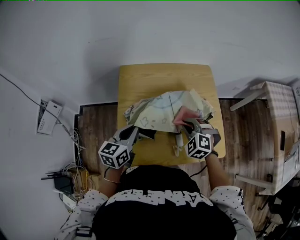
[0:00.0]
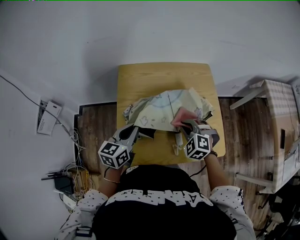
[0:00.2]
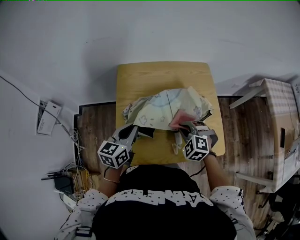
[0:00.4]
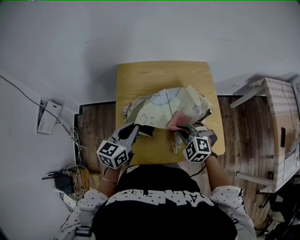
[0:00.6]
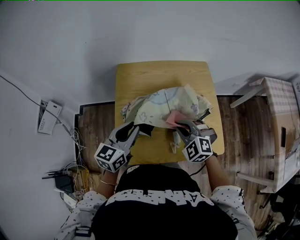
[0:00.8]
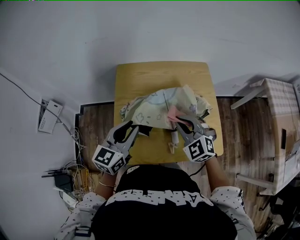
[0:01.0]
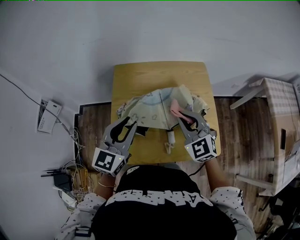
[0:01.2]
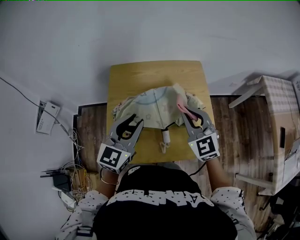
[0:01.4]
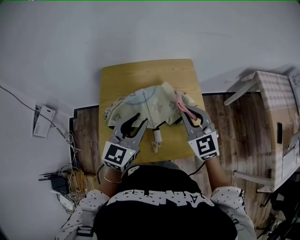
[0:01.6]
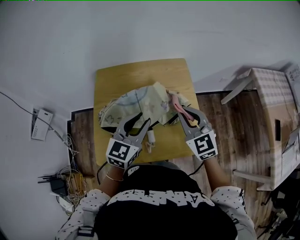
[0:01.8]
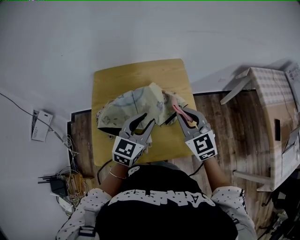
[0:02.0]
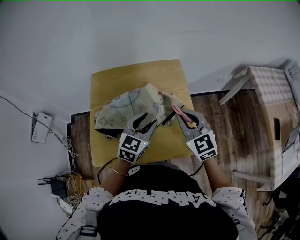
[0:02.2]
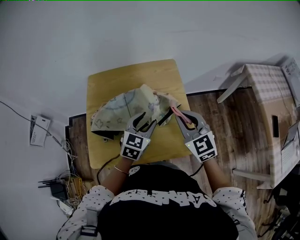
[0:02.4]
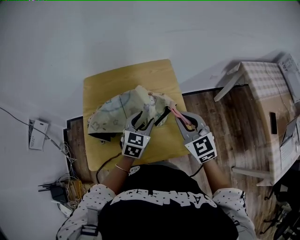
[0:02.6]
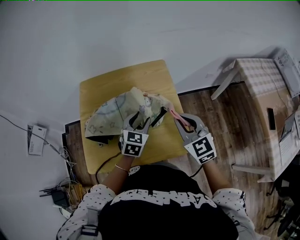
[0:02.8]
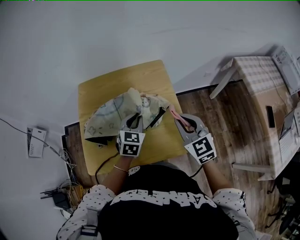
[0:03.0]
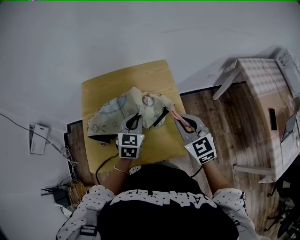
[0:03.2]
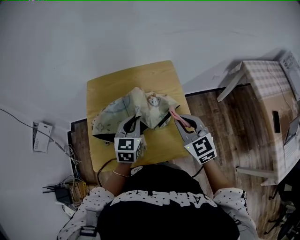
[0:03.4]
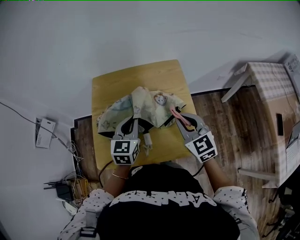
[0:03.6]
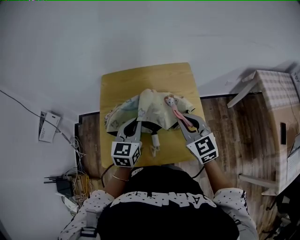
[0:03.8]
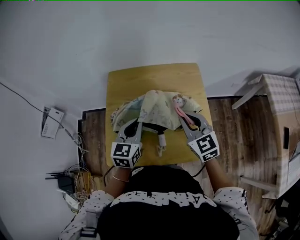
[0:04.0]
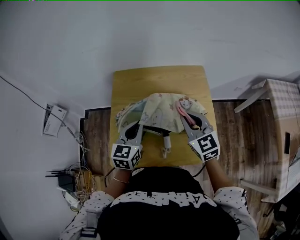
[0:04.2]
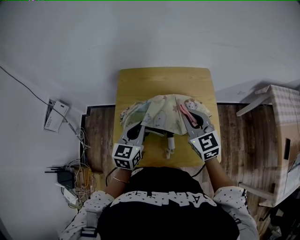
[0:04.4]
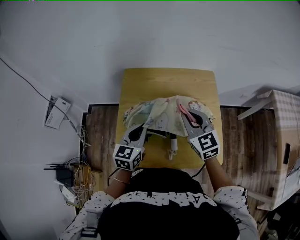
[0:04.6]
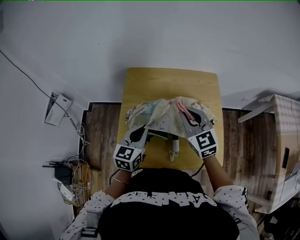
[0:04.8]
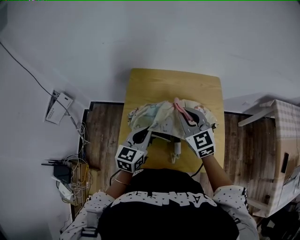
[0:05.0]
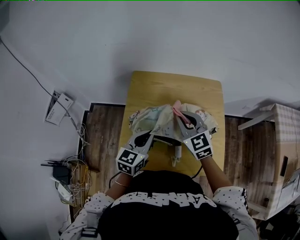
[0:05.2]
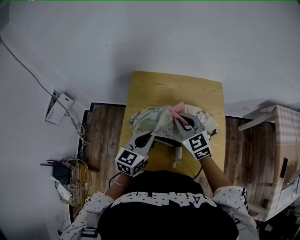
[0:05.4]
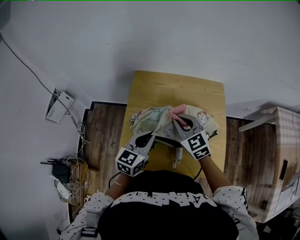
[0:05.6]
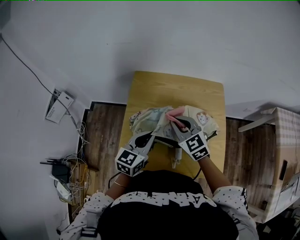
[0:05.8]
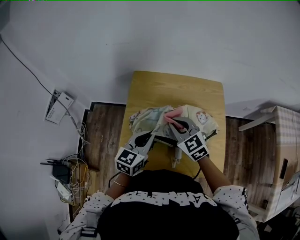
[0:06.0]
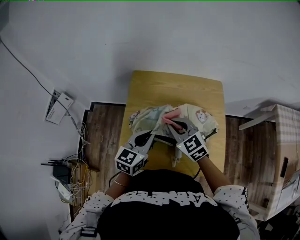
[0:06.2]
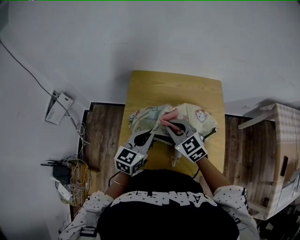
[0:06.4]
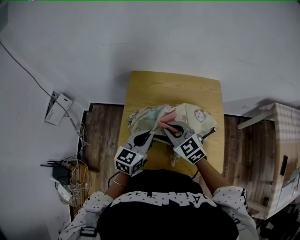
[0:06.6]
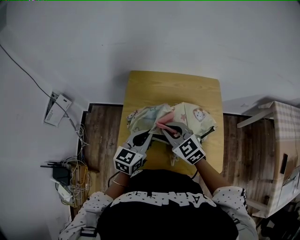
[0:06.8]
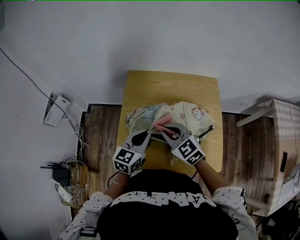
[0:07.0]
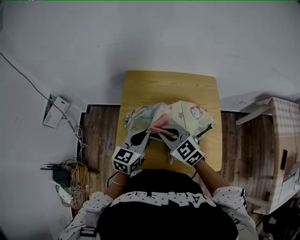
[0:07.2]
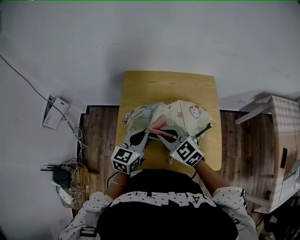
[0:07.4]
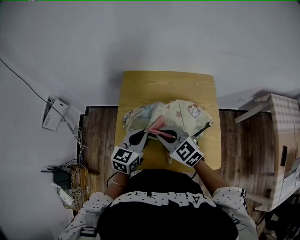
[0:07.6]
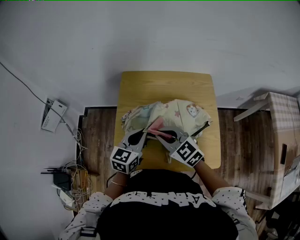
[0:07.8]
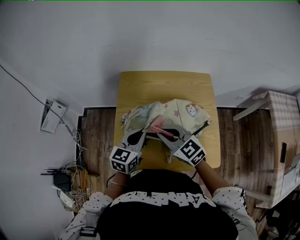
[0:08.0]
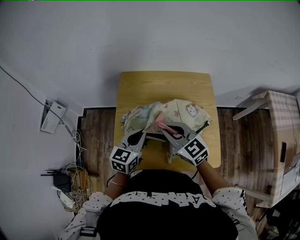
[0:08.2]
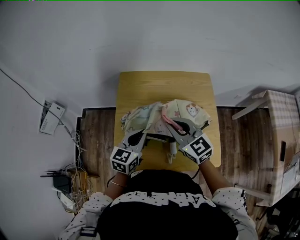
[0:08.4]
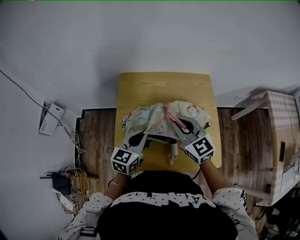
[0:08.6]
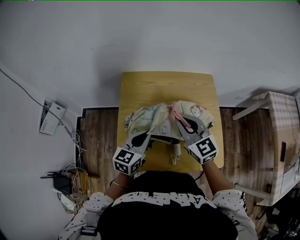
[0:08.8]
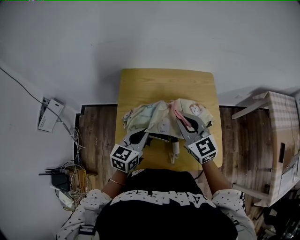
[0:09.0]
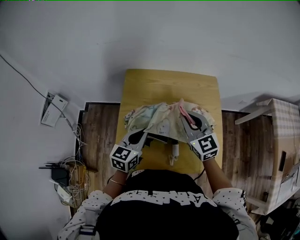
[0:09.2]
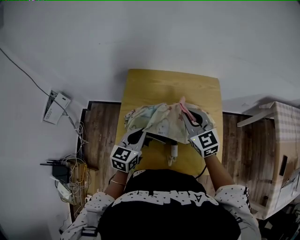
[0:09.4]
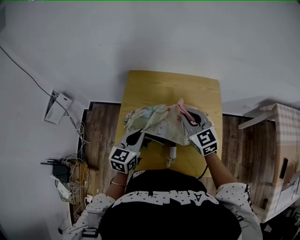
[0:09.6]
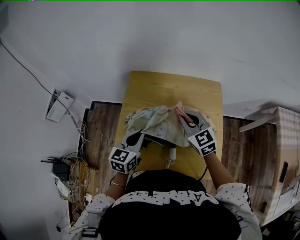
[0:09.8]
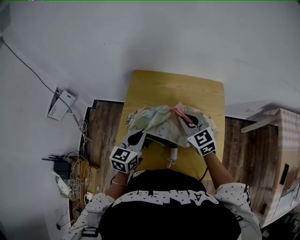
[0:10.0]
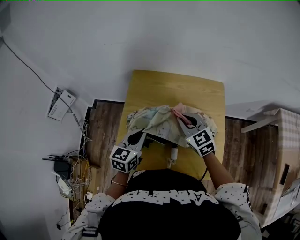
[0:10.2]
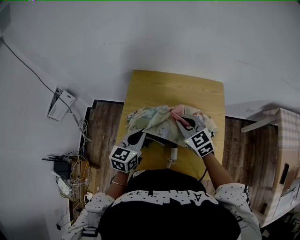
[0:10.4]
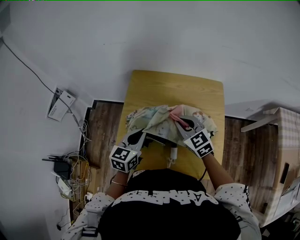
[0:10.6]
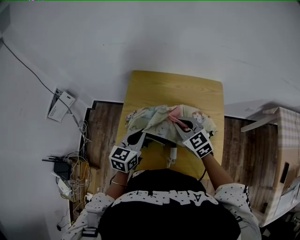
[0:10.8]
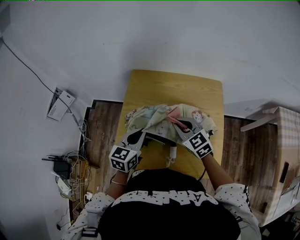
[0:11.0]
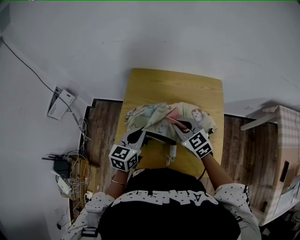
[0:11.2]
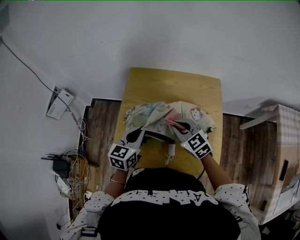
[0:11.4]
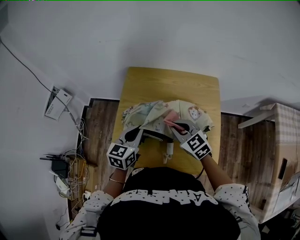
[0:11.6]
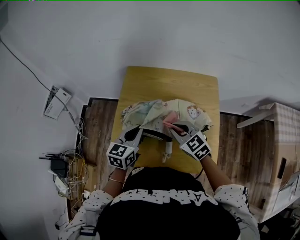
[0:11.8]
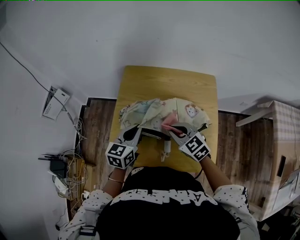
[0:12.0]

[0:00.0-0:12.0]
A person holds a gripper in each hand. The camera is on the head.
0:00.0 to 0:01.6: The left gripper is displaced to the right and upward by about 15 cm, changes its angle by approximately 30 degrees, and opens. The right gripper moves upward and to the right, approximately 15 cm, and tilts its fingers some 30 degrees upward.
0:01.6 to 0:03.0: The left gripper heads downward, to the right and forward, covering about 15 cm, and swivels about 20 degrees. Meanwhile the right gripper goes about 10 cm to the right.
0:03.0 to 0:04.4: The left gripper travels to the left by some 20 cm, and rotates approximately 20 degrees. Meanwhile the right gripper travels to the left and forward by roughly 20 cm.
0:04.4 to 0:06.0: The right gripper shifts about 10 cm to the left, and turns by roughly 20 degrees.
0:06.0 to 0:07.6: The right gripper is displaced backward by some 5 cm.
0:07.6 to 0:09.0: The right gripper shifts approximately 10 cm to the right and forward, and changes its angle by about 20 degrees.
0:09.0 to 0:10.4: The right gripper shifts approximately 5 cm downward.
0:10.4 to 0:12.0: The right gripper is displaced backward by some 5 cm.

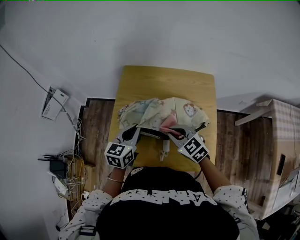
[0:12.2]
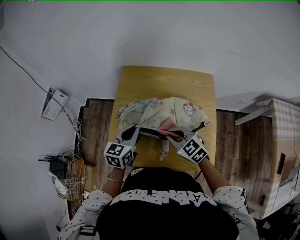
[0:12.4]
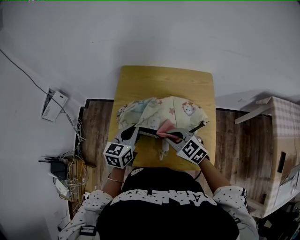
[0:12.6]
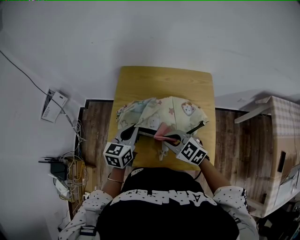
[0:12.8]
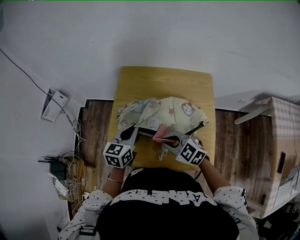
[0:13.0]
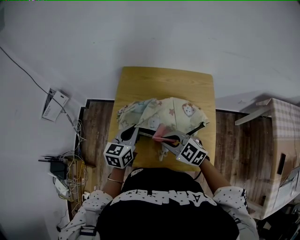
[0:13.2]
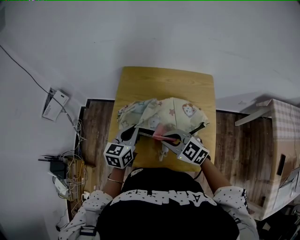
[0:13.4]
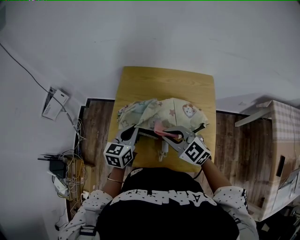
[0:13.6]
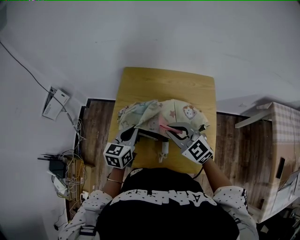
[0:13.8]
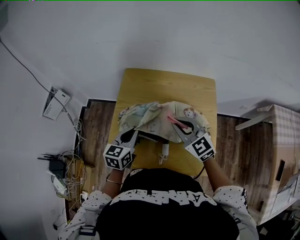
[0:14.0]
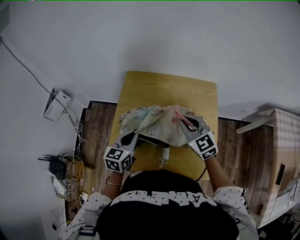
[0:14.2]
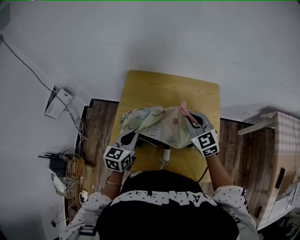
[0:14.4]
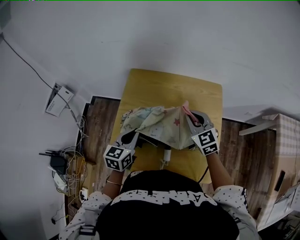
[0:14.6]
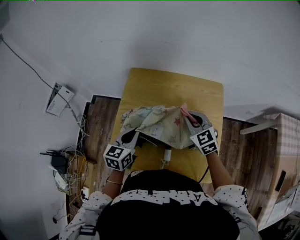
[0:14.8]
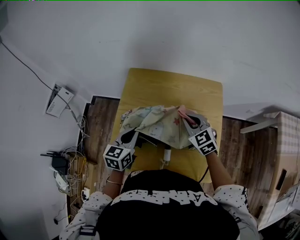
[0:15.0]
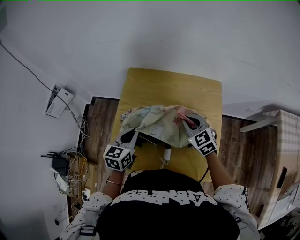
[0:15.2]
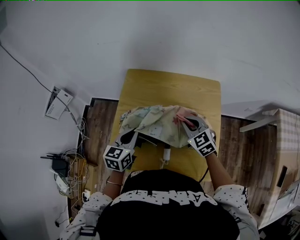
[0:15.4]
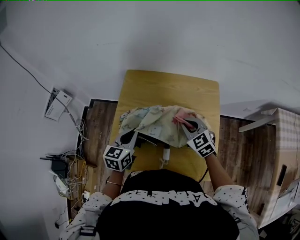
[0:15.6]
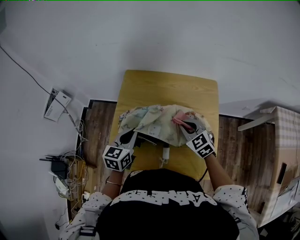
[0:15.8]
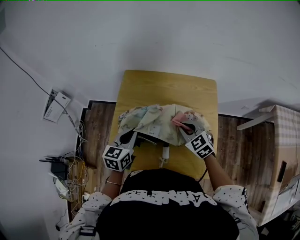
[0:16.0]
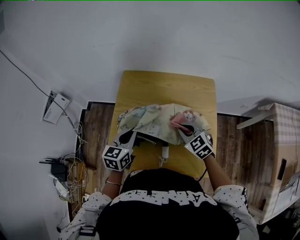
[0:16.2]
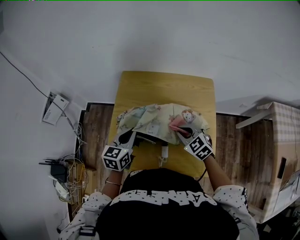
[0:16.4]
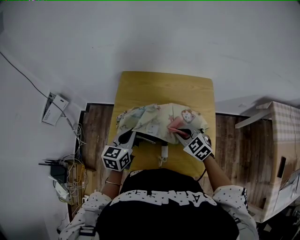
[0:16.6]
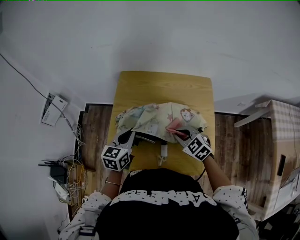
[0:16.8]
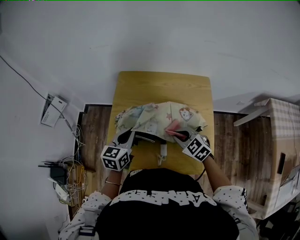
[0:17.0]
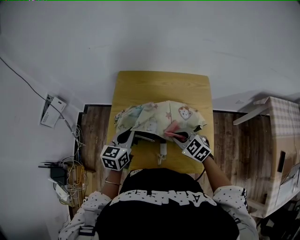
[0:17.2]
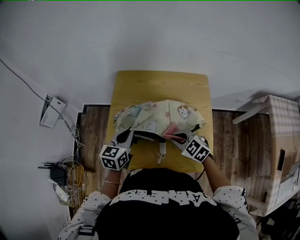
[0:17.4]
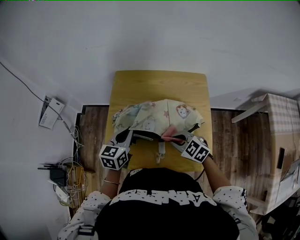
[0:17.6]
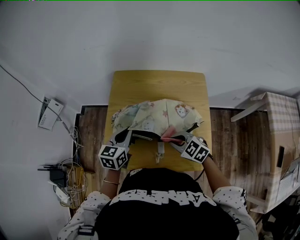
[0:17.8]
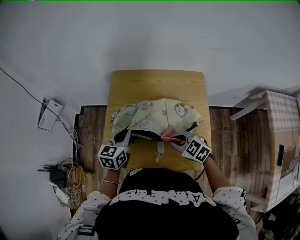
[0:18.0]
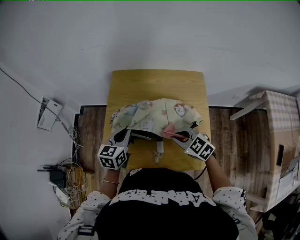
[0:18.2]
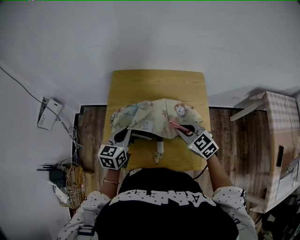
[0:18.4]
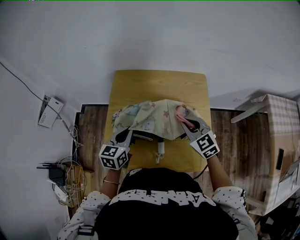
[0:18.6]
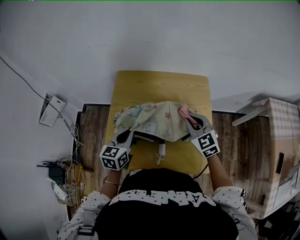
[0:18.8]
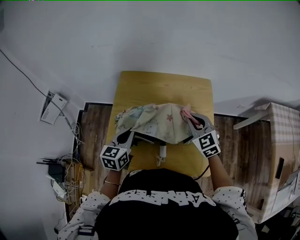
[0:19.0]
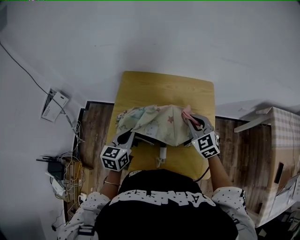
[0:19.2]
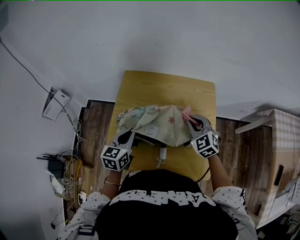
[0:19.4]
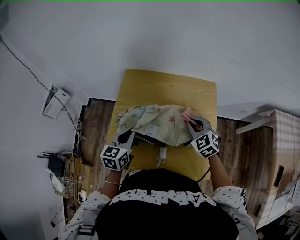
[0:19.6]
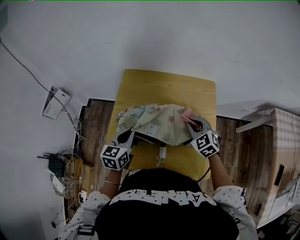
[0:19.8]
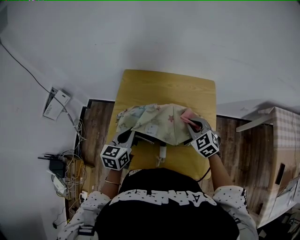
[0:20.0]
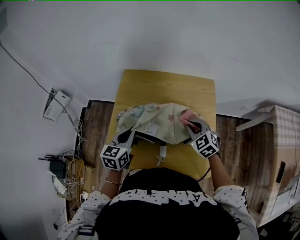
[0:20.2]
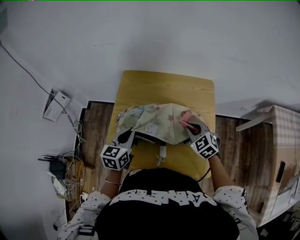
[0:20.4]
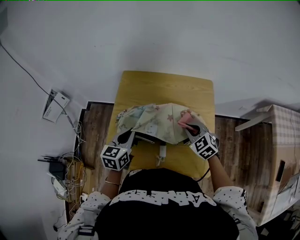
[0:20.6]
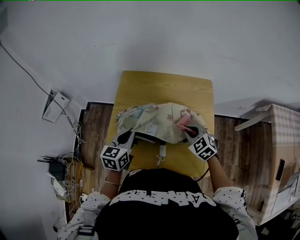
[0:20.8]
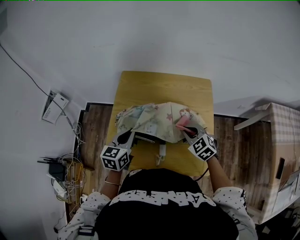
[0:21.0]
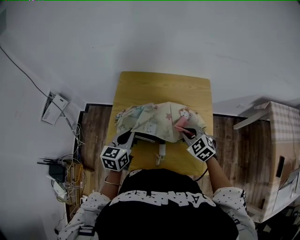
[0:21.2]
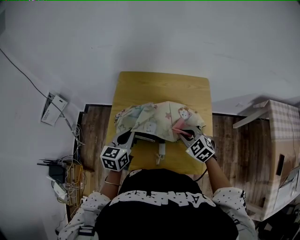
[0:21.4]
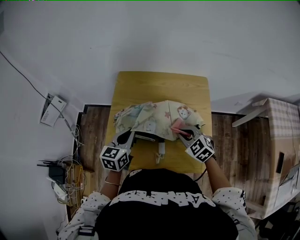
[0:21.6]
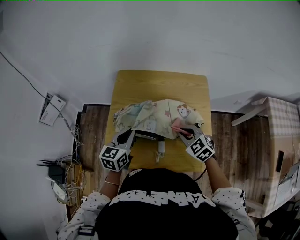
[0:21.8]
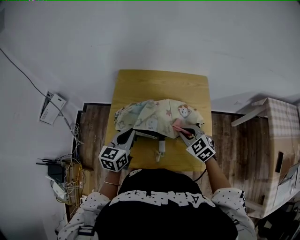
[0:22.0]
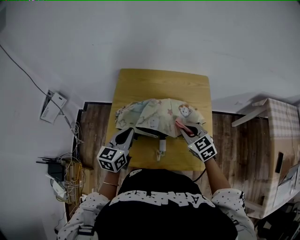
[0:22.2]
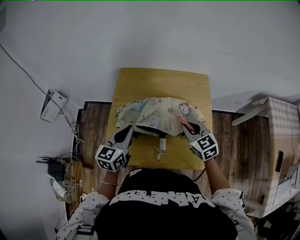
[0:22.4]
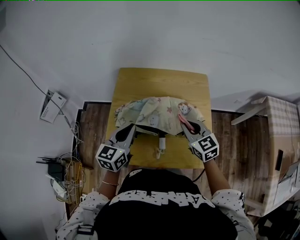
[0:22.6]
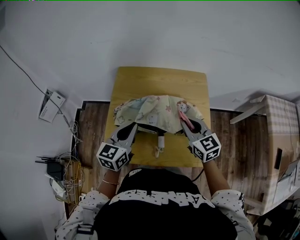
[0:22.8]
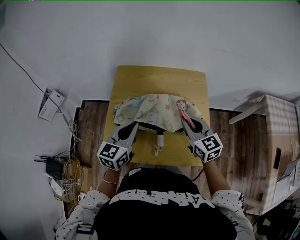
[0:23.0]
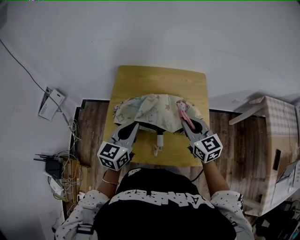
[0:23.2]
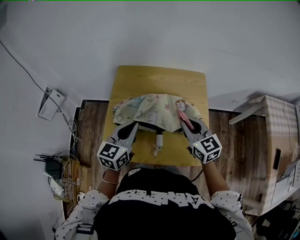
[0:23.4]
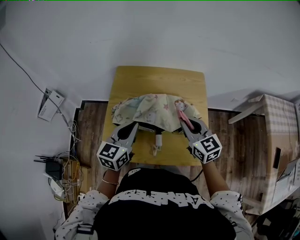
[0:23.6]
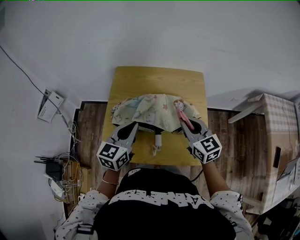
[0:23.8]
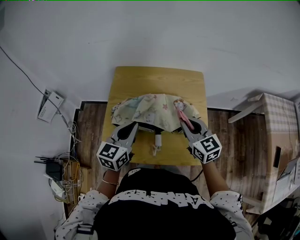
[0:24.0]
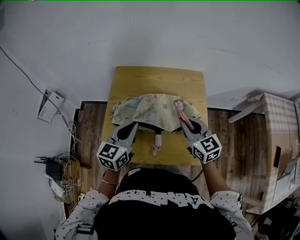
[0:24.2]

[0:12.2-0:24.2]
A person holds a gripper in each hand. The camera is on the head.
0:12.2 to 0:13.8: The right gripper shifts about 5 cm upward.
0:13.8 to 0:15.2: The right gripper moves forward, to the right and downward, approximately 15 cm, and swivels about 20 degrees.
0:15.2 to 0:16.6: The right gripper is displaced backward by some 5 cm.
0:16.6 to 0:18.2: The right gripper shifts by about 5 cm.
0:18.2 to 0:19.8: The right gripper goes some 10 cm forward and to the right, and turns by roughly 20 degrees.
0:19.8 to 0:21.2: The right gripper is displaced backward by roughly 5 cm.
0:21.2 to 0:22.6: Both grippers travel together upward, about 5 cm. The right gripper swivels about 30 degrees.
0:22.6 to 0:24.2: The grippers make only small movements.
